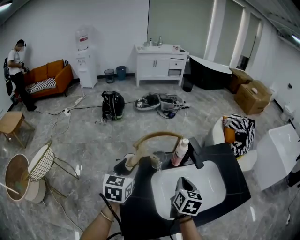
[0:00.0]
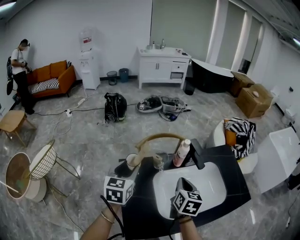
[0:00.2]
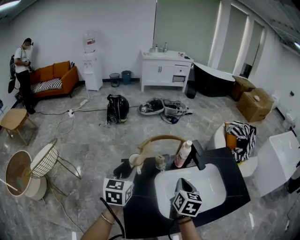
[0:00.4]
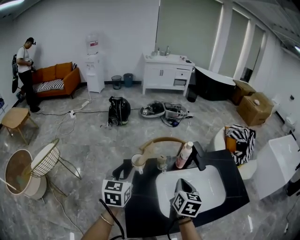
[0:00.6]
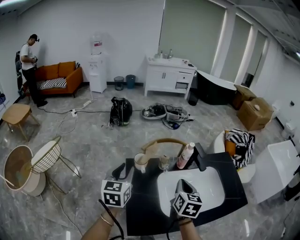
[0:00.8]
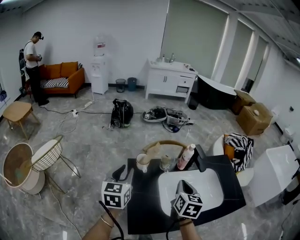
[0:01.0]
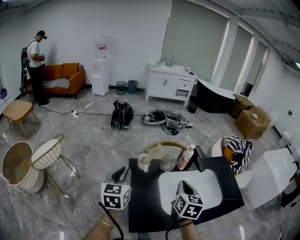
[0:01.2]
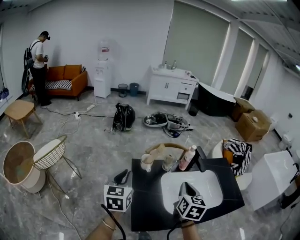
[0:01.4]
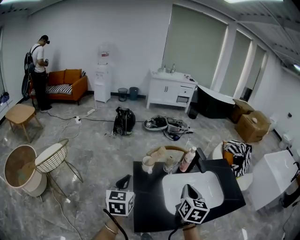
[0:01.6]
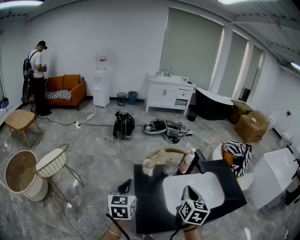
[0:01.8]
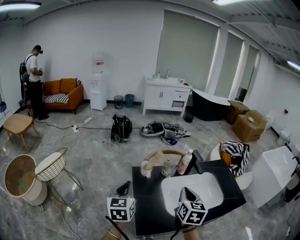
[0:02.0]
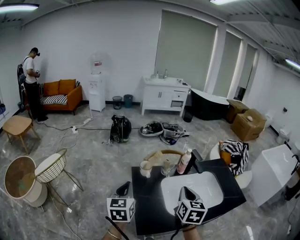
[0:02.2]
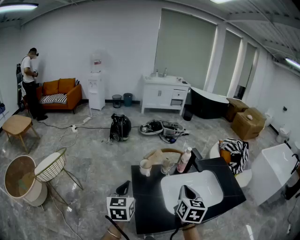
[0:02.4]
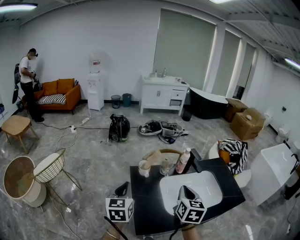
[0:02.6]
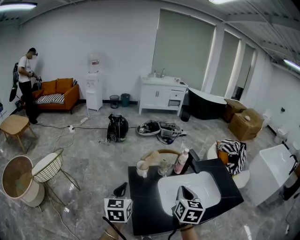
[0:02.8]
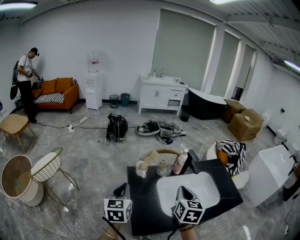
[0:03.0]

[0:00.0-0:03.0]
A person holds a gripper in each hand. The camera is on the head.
0:00.0 to 0:01.6: The left gripper goes roughly 20 cm backward and to the left, and closes its fingers. Meanwhile the right gripper is displaced backward, upward and to the left by approximately 15 cm.
0:01.6 to 0:03.0: The grippers move only a little.

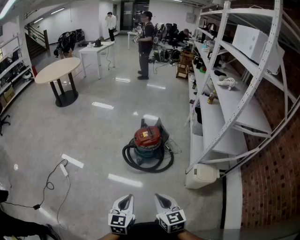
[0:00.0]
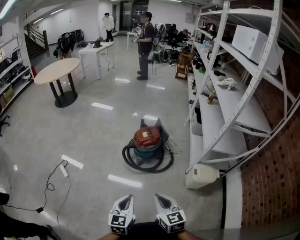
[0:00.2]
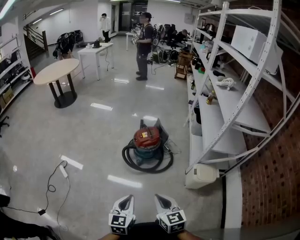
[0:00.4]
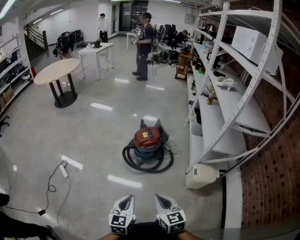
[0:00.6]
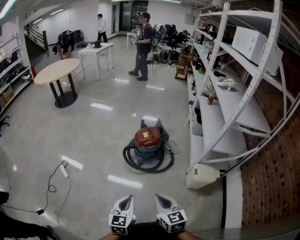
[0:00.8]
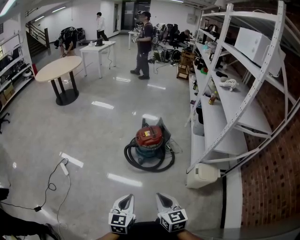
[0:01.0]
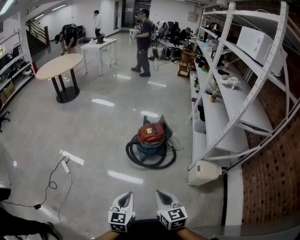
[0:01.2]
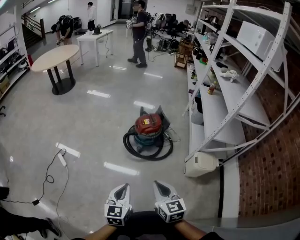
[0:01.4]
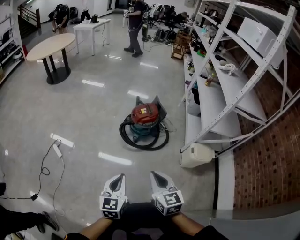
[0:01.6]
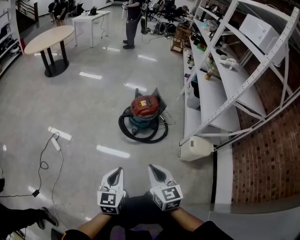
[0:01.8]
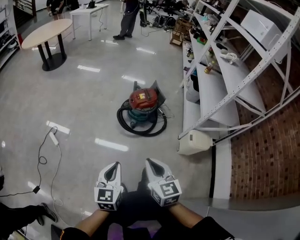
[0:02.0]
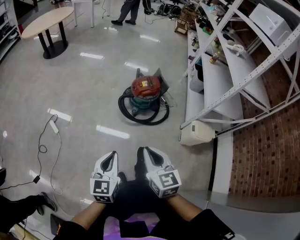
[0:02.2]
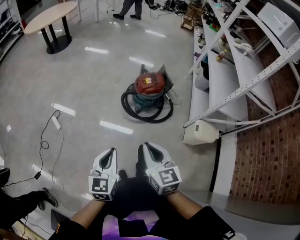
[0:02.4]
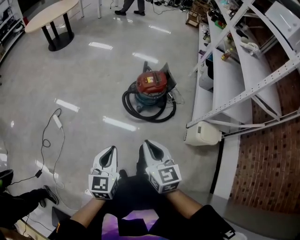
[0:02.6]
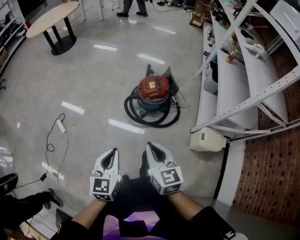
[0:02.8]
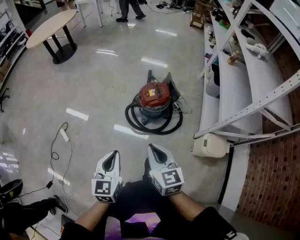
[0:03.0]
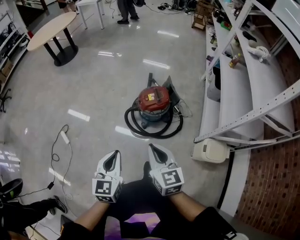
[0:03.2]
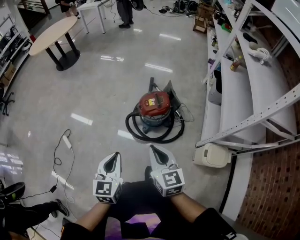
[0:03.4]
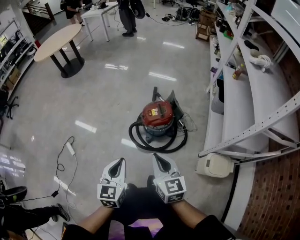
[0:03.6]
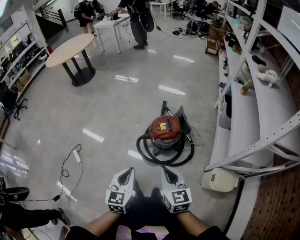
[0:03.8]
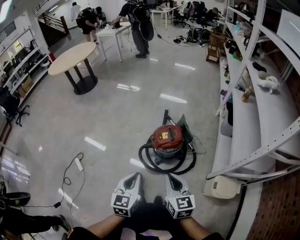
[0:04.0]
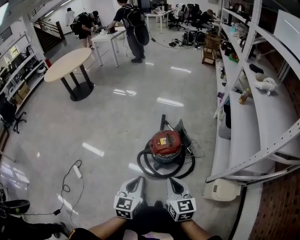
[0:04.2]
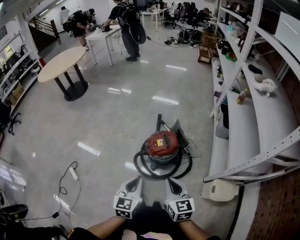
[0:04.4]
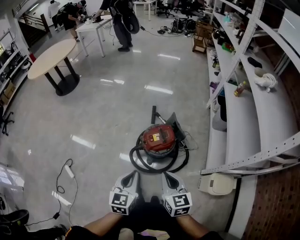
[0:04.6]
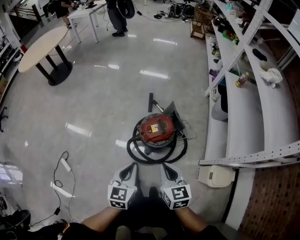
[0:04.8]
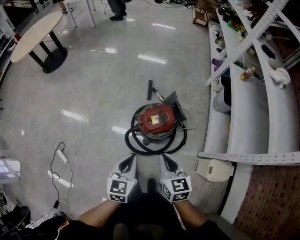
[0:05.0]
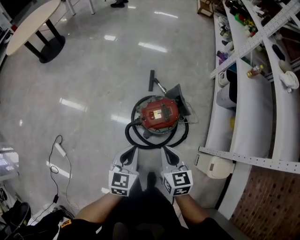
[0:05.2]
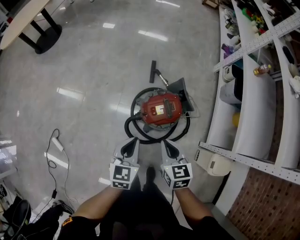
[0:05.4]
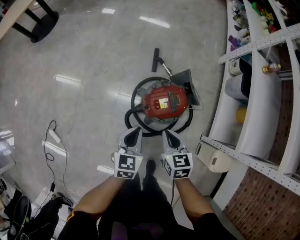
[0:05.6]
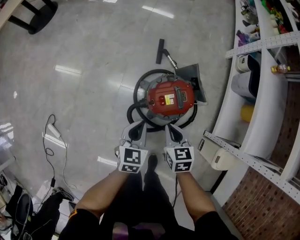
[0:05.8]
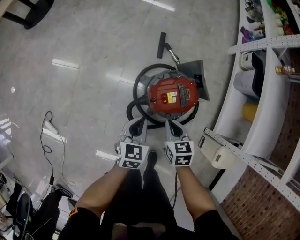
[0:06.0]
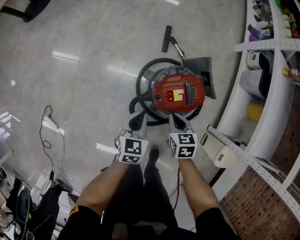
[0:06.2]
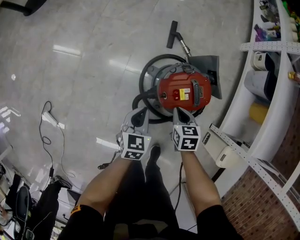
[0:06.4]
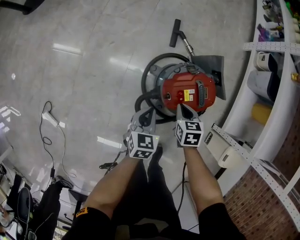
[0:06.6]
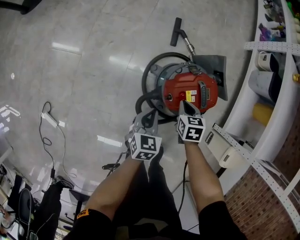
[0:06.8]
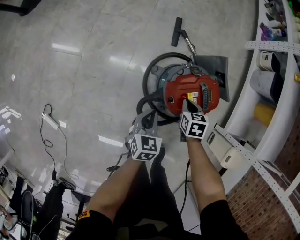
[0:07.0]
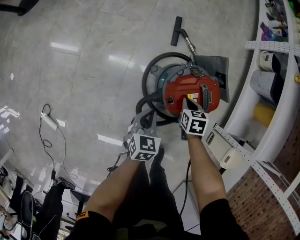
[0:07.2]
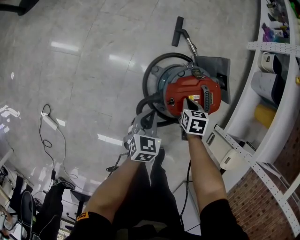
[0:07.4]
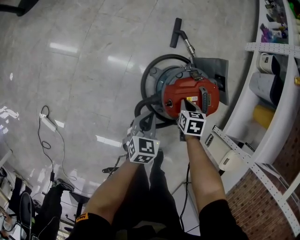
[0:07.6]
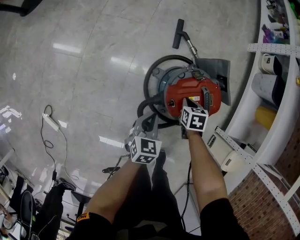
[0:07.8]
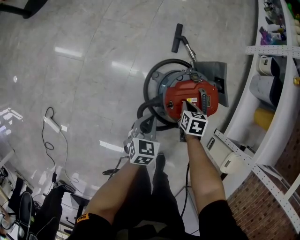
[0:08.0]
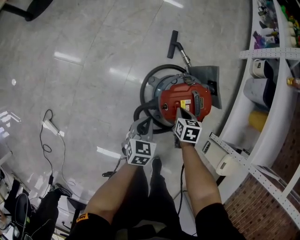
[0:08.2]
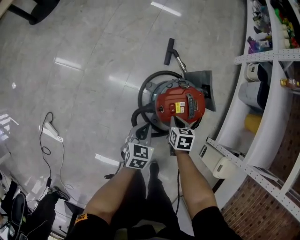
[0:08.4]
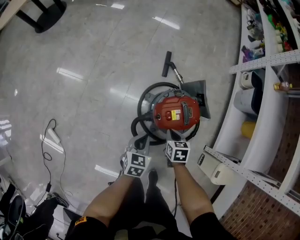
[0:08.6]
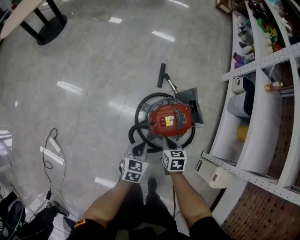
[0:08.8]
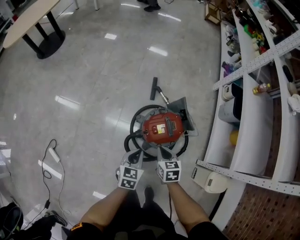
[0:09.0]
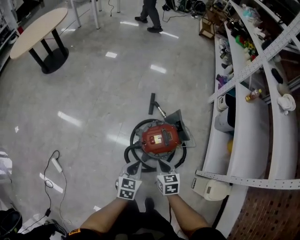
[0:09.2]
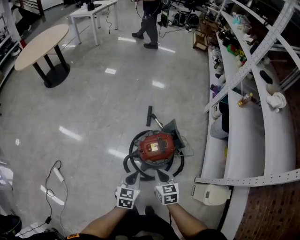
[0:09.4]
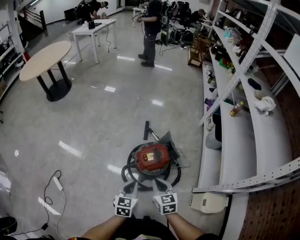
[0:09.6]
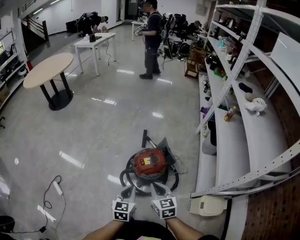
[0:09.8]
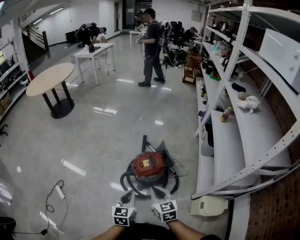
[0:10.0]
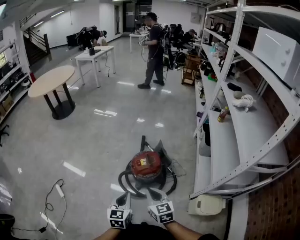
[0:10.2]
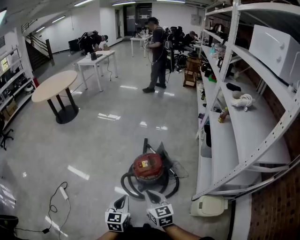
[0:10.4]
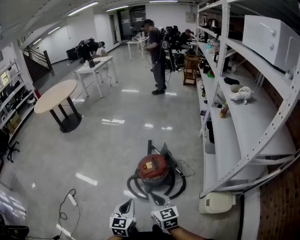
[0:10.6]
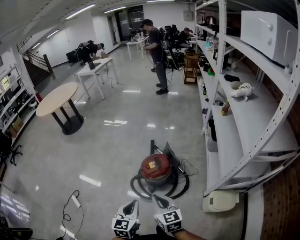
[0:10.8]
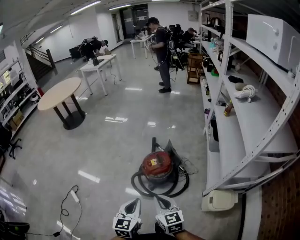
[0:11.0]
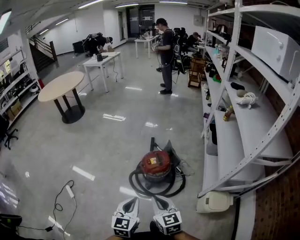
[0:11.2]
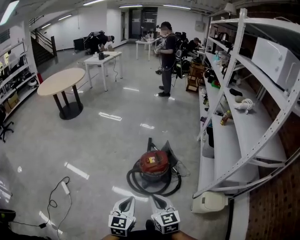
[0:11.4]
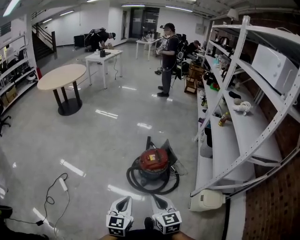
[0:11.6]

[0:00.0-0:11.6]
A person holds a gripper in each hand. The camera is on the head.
0:00.0 to 0:01.4: Both grippers travel together to the left, about 5 cm.
0:01.4 to 0:02.8: Both grippers travel together forward, some 15 cm.
0:02.8 to 0:04.4: The grippers both shift forward and to the right by roughly 20 cm.
0:04.4 to 0:05.8: Both grippers move forward and downward, about 35 cm. The right gripper rotates roughly 30 degrees.
0:05.8 to 0:07.2: The right gripper is displaced downward and forward by approximately 25 cm, and changes its angle by about 20 degrees. The left gripper is displaced downward by some 15 cm.
0:07.2 to 0:08.8: The two grippers go roughly 15 cm upward and backward.
0:08.8 to 0:10.2: Both grippers move upward and backward, roughly 35 cm. The right gripper points its fingers roughly 30 degrees further upward; the left gripper swivels some 20 degrees.
0:10.2 to 0:11.6: Both grippers travel together backward, to the left and upward, about 20 cm.

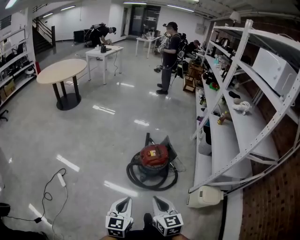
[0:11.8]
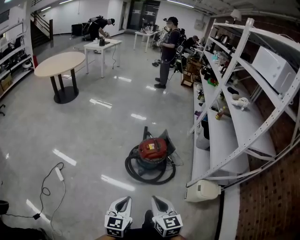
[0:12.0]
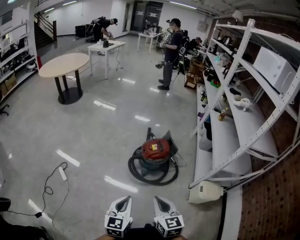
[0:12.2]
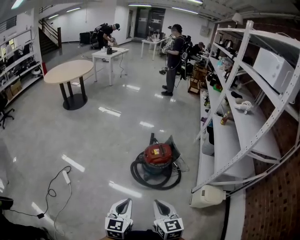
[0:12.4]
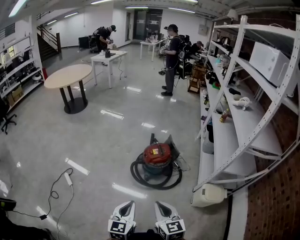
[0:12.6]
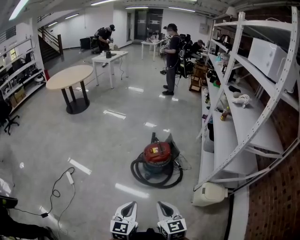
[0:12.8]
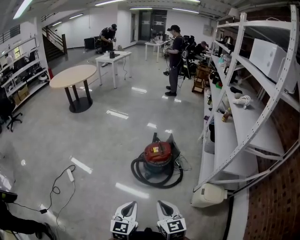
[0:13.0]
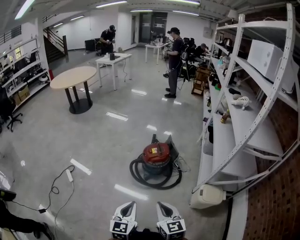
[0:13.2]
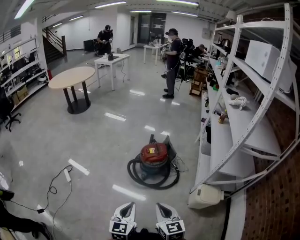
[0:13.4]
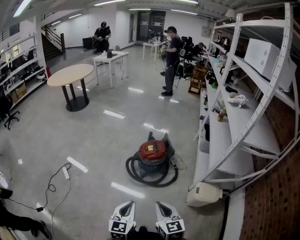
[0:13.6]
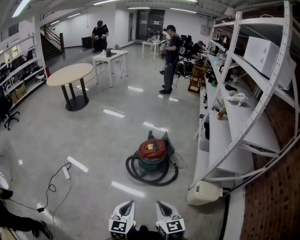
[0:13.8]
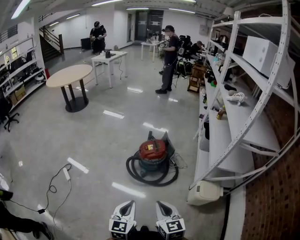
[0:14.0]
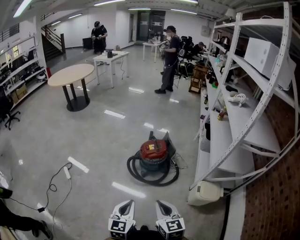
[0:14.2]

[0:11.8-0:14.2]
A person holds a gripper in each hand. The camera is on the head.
0:11.8 to 0:13.0: The two grippers go about 15 cm backward and to the right.
0:13.0 to 0:14.2: There are only small adjustments of the grippers.

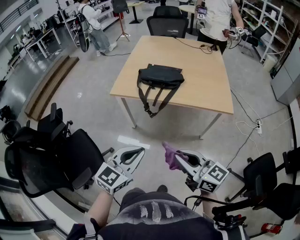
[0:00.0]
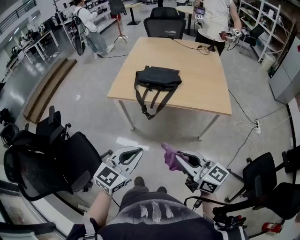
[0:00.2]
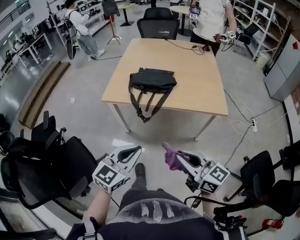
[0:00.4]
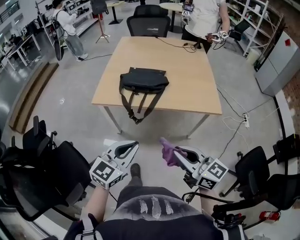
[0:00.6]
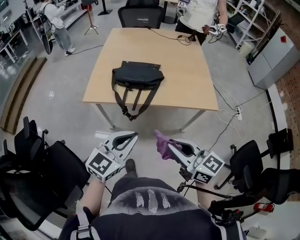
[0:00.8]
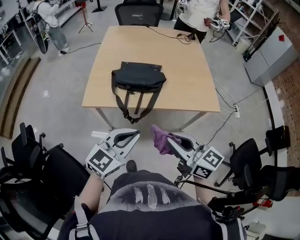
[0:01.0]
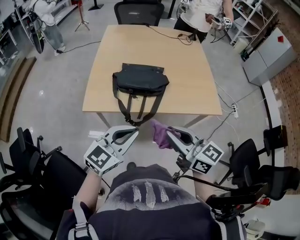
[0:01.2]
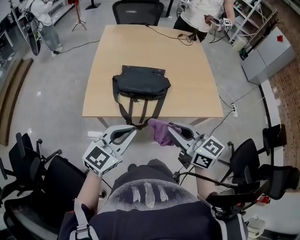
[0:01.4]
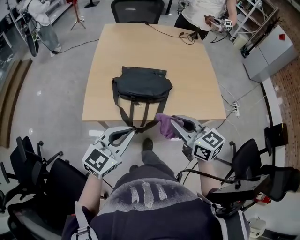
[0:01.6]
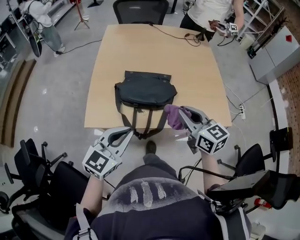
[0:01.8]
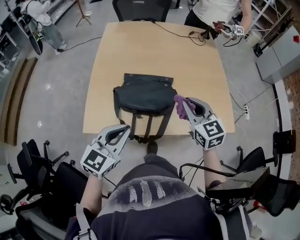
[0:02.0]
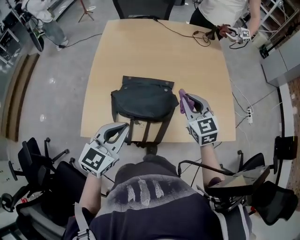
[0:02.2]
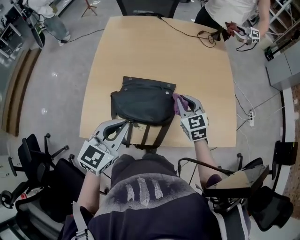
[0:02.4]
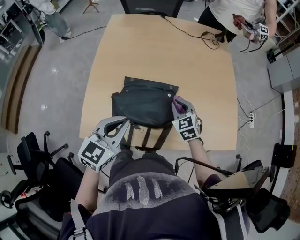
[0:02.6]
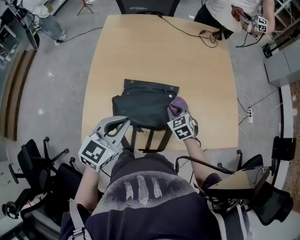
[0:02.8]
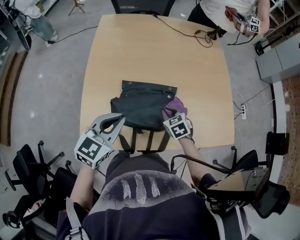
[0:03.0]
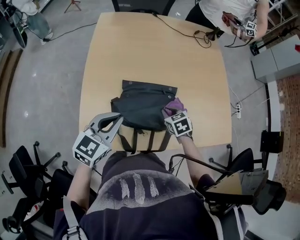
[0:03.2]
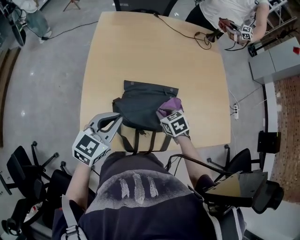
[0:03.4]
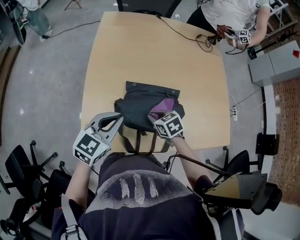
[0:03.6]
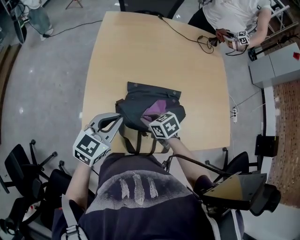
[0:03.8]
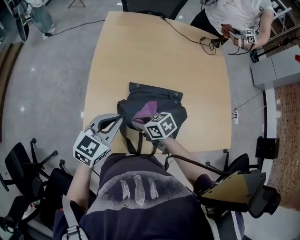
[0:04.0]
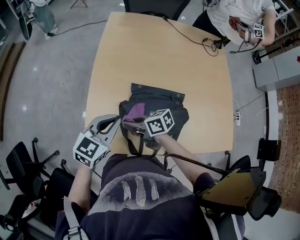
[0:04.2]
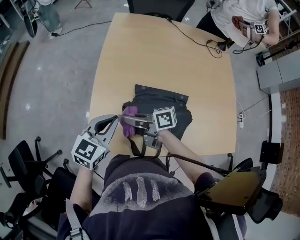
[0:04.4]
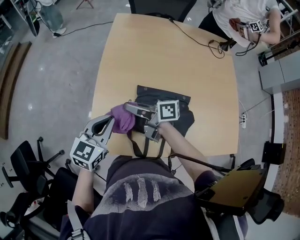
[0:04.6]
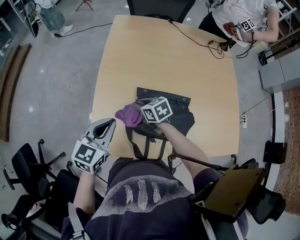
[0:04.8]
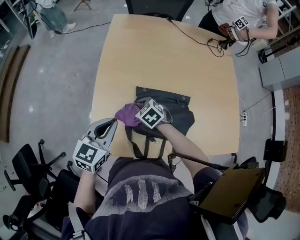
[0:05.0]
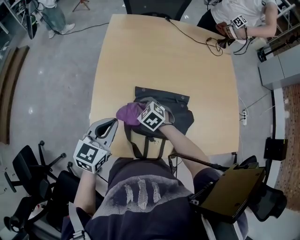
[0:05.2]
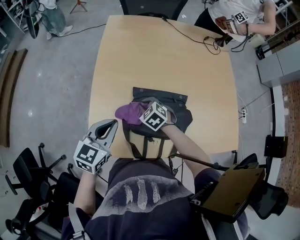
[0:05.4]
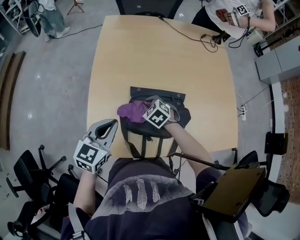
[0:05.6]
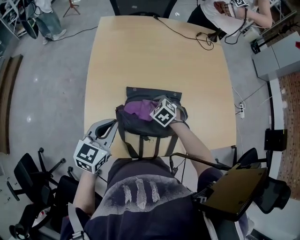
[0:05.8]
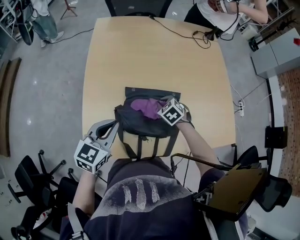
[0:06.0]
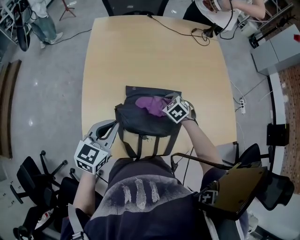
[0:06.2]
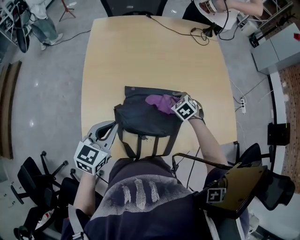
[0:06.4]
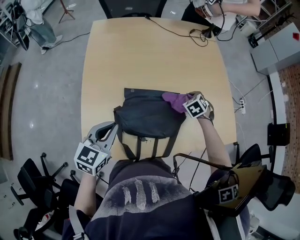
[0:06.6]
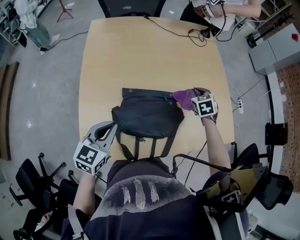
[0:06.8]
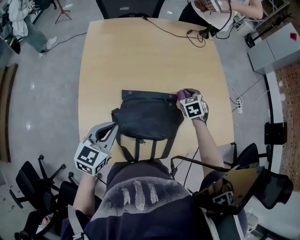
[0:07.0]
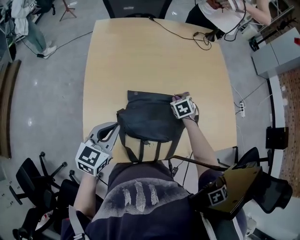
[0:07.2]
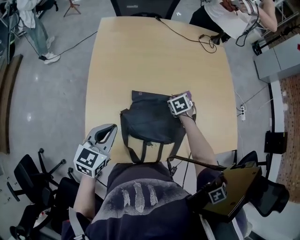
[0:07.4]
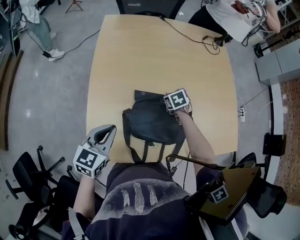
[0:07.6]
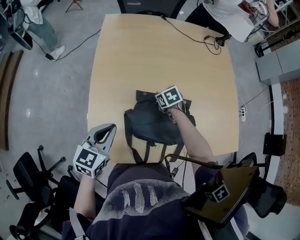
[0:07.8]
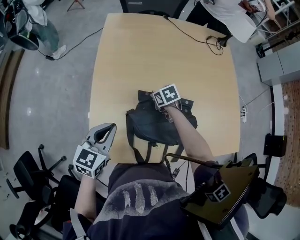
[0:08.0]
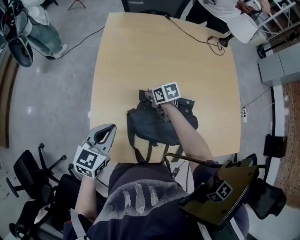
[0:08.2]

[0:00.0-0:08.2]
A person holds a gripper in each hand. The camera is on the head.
0:00.0 to 0:01.6: The two grippers go approximately 35 cm forward. The right gripper rotates roughly 20 degrees.
0:01.6 to 0:03.2: The left gripper moves forward, approximately 25 cm, while the right gripper goes approximately 35 cm forward and downward, and tips its fingers downward by some 40 degrees.
0:03.2 to 0:05.0: The right gripper reaches some 15 cm upward, then returns, and changes its angle by roughly 30 degrees; the left gripper ends up roughly 10 cm from where it was.
0:05.0 to 0:06.6: The right gripper changes place by approximately 35 cm, and changes its angle by some 30 degrees. The left gripper shifts by roughly 5 cm.
0:06.6 to 0:08.2: The left gripper ends up approximately 10 cm from where it was; the right gripper ends up some 30 cm from where it was, and changes its angle by about 50 degrees.
